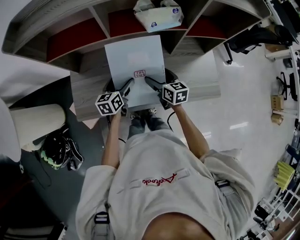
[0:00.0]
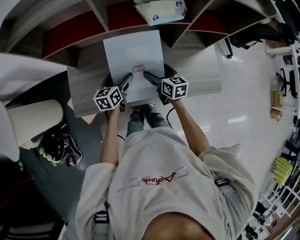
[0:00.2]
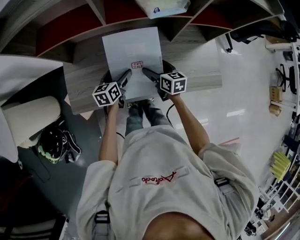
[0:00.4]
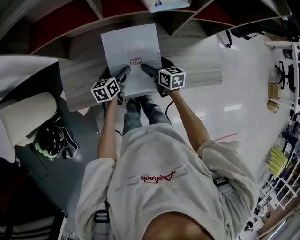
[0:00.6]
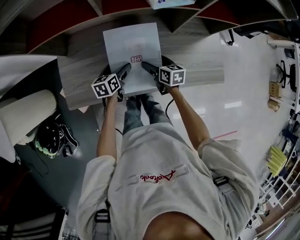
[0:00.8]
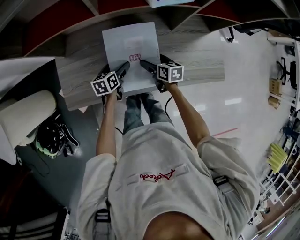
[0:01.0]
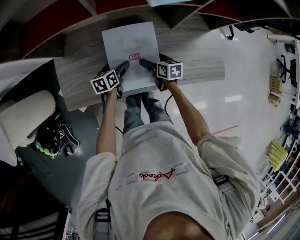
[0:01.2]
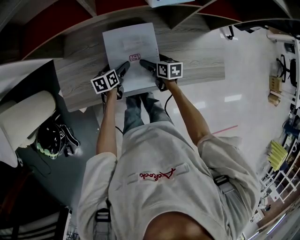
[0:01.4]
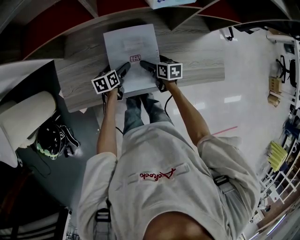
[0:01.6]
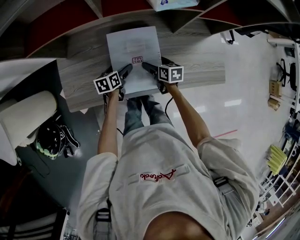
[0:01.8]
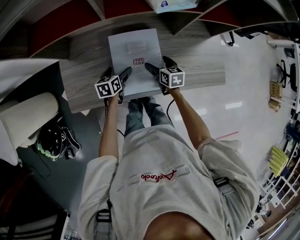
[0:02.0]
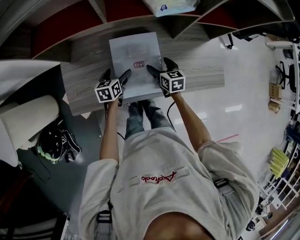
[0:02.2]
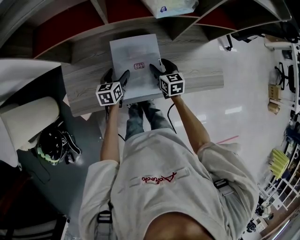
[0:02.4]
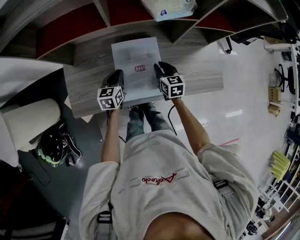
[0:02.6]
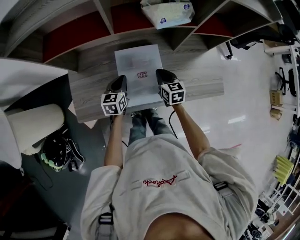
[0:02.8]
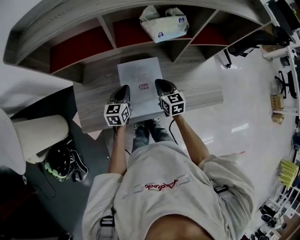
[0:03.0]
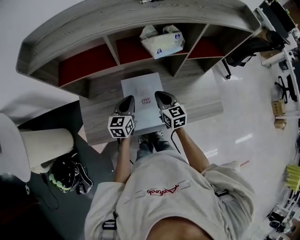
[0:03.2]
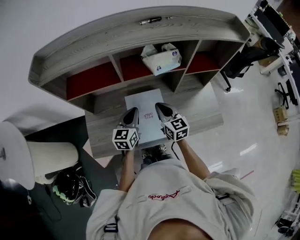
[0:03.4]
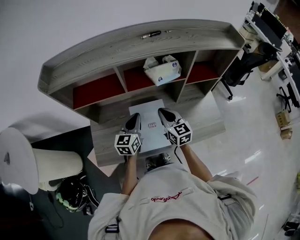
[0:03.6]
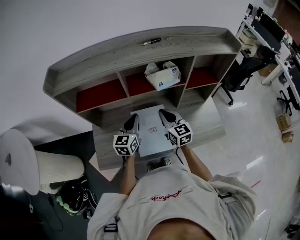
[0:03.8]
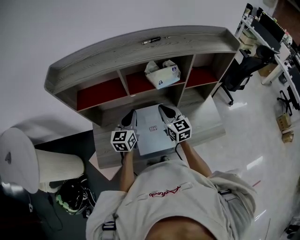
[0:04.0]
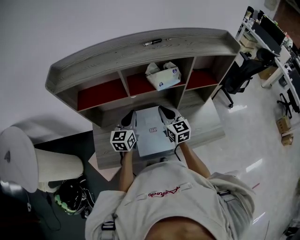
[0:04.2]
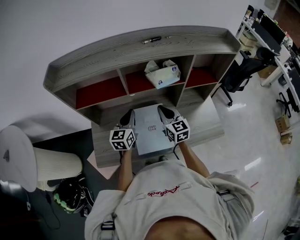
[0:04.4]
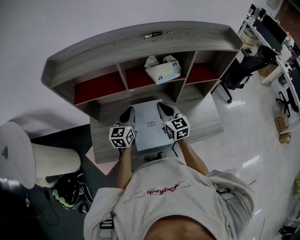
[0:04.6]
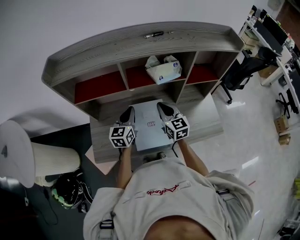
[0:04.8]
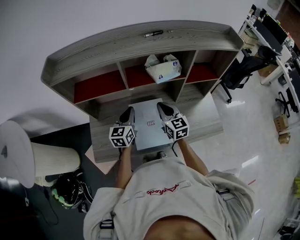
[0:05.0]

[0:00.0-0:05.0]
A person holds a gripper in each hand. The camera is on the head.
0:00.0 to 0:01.6: The grippers both shift downward by some 15 cm. The right gripper swivels about 20 degrees. Meanwhile the left gripper rotates about 20 degrees.
0:01.6 to 0:03.4: Both grippers travel together upward, approximately 25 cm. The left gripper turns by roughly 40 degrees, and closes; the right gripper turns by approximately 40 degrees, and closes its fingers.
0:03.4 to 0:05.0: The left gripper shifts by about 5 cm.

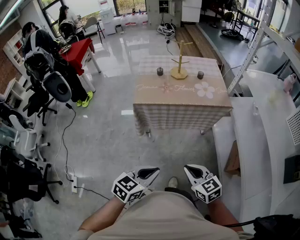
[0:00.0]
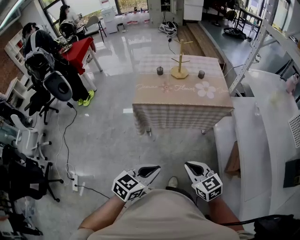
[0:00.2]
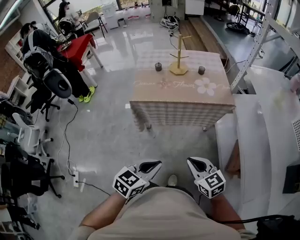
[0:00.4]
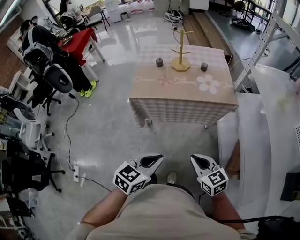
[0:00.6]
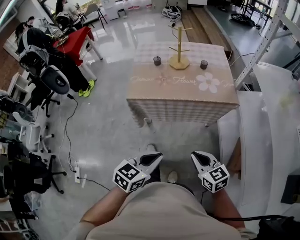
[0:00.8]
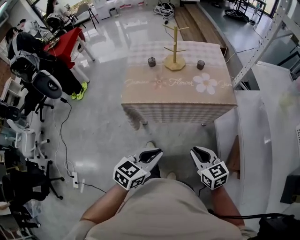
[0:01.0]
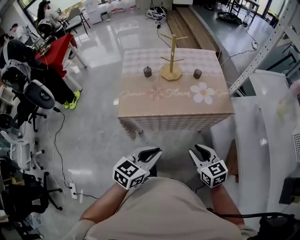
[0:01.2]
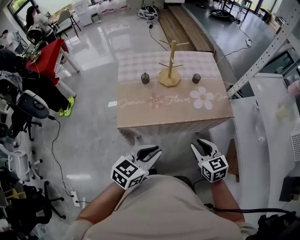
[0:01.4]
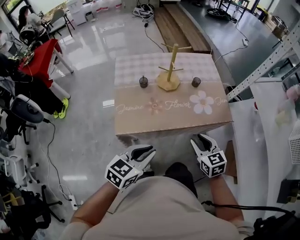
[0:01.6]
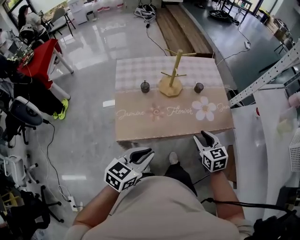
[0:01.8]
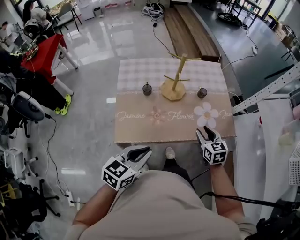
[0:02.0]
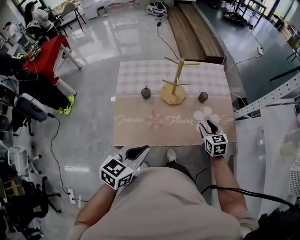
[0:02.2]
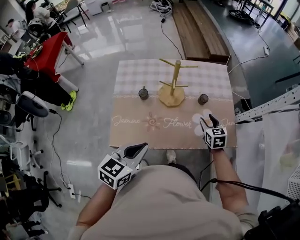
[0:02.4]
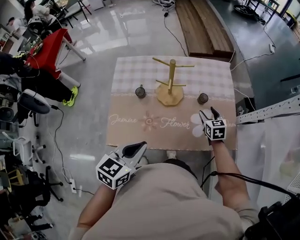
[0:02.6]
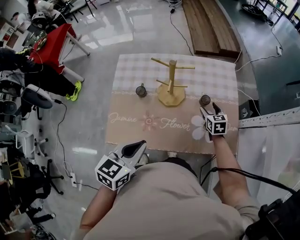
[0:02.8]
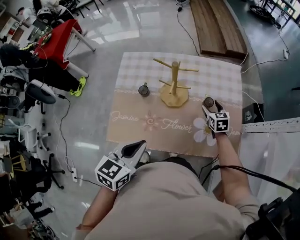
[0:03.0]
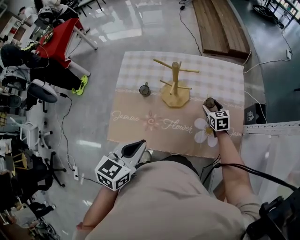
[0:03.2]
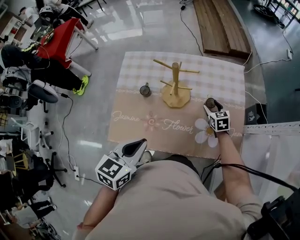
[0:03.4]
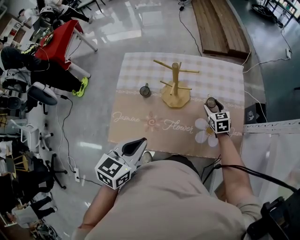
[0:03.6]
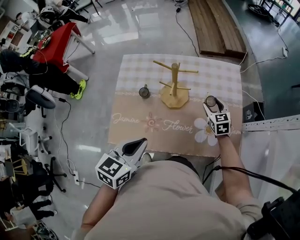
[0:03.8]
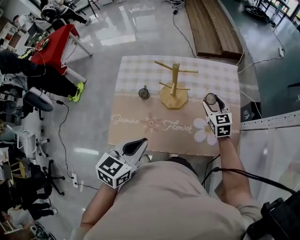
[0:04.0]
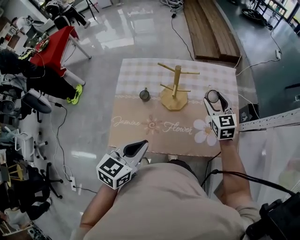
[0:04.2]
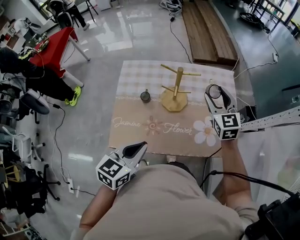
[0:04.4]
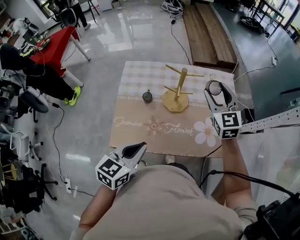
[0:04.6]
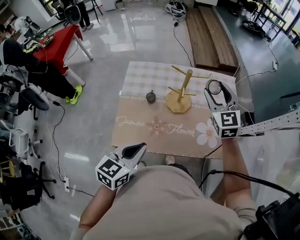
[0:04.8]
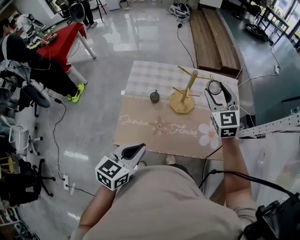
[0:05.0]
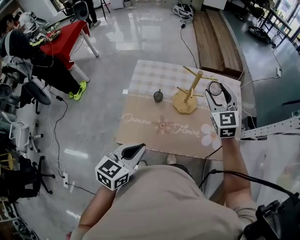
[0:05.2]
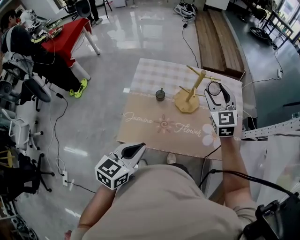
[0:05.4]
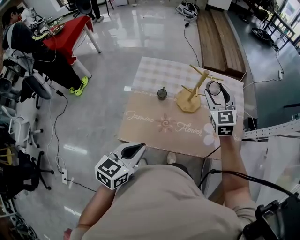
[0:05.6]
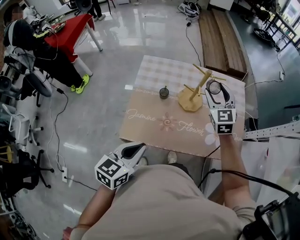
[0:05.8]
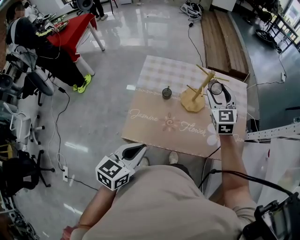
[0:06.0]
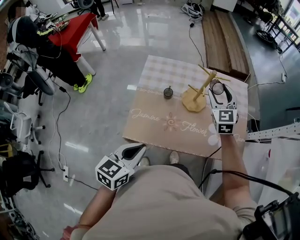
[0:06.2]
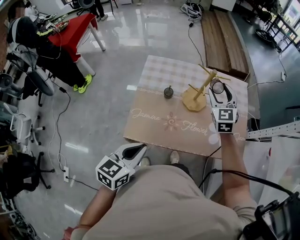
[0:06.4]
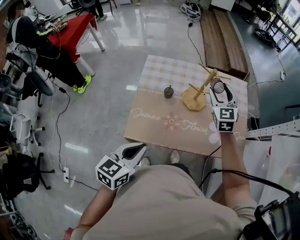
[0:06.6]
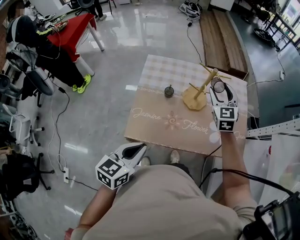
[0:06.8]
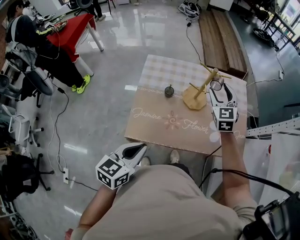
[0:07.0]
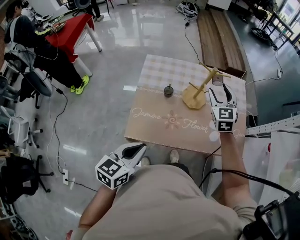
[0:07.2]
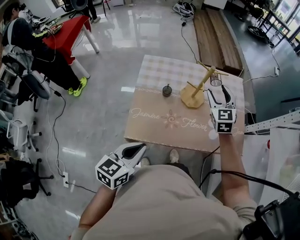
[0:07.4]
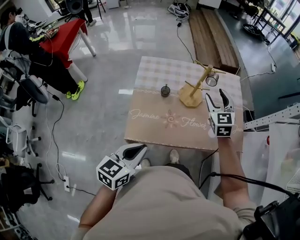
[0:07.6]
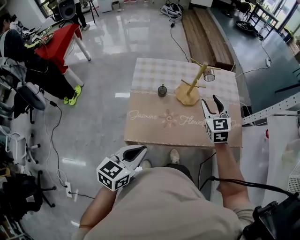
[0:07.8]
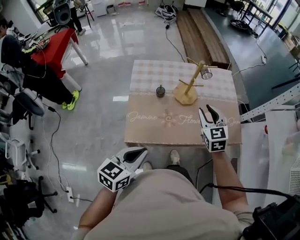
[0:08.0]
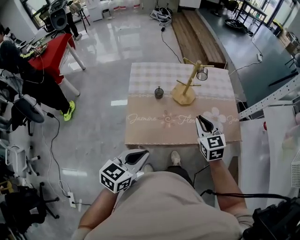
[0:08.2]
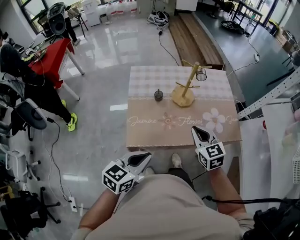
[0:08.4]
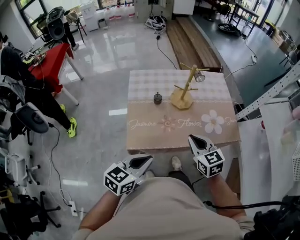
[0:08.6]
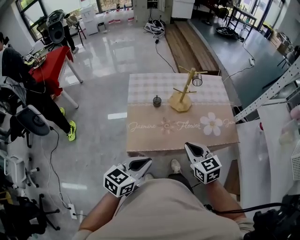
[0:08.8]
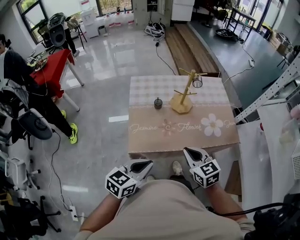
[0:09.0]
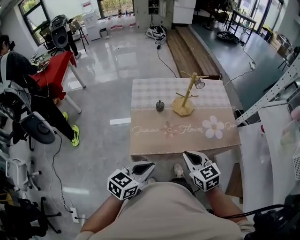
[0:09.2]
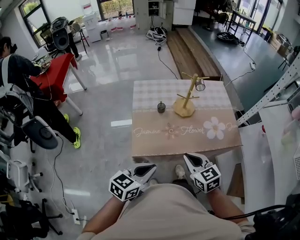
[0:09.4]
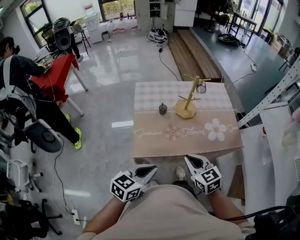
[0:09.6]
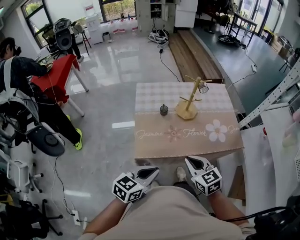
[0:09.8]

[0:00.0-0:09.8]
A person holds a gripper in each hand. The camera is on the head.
0:00.0 to 0:01.4: The two grippers go about 30 cm forward. The right gripper opens up.
0:01.4 to 0:02.8: The left gripper goes some 25 cm forward, and rotates about 20 degrees. The right gripper is displaced forward by about 40 cm, and opens up.
0:02.8 to 0:04.2: The right gripper shifts roughly 15 cm upward, and rotates some 20 degrees.
0:04.2 to 0:05.6: The left gripper heads to the left and backward, covering approximately 10 cm; the right gripper is displaced to the left and upward by approximately 15 cm.
0:05.6 to 0:07.0: There are only small adjustments of the grippers.
0:07.0 to 0:08.4: The right gripper travels backward by roughly 25 cm, turns by roughly 20 degrees, and closes its fingers.
0:08.4 to 0:09.8: The right gripper is displaced backward by approximately 10 cm.

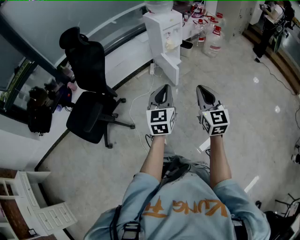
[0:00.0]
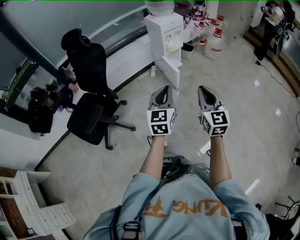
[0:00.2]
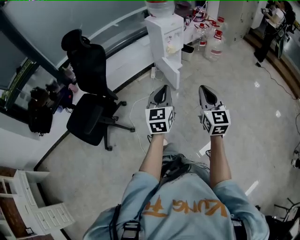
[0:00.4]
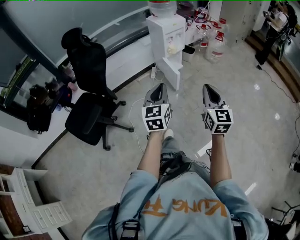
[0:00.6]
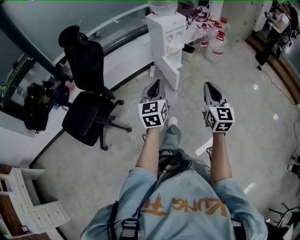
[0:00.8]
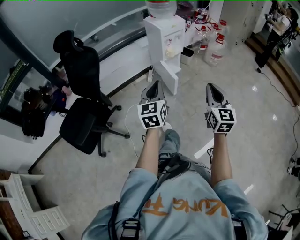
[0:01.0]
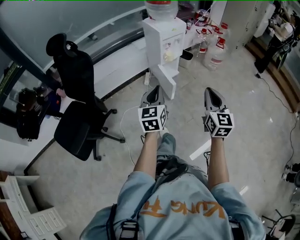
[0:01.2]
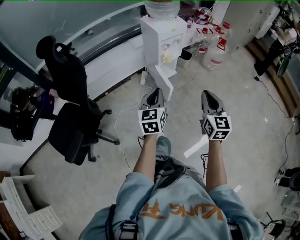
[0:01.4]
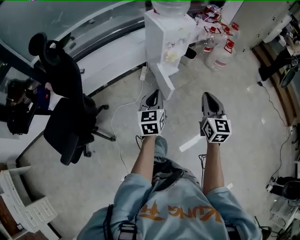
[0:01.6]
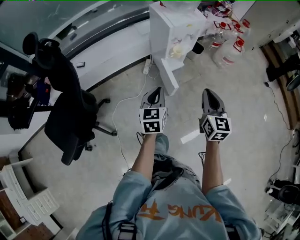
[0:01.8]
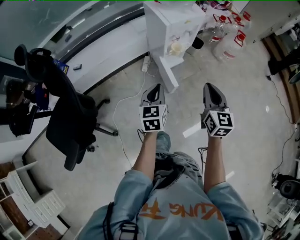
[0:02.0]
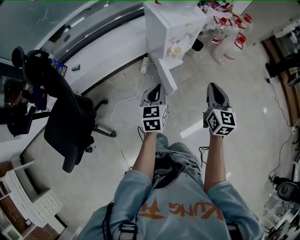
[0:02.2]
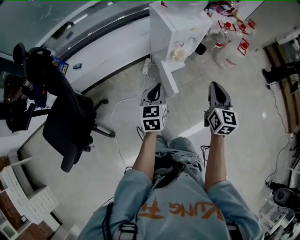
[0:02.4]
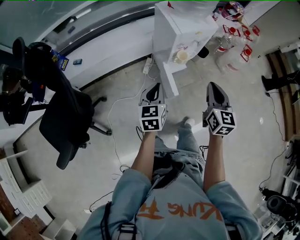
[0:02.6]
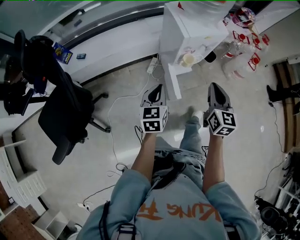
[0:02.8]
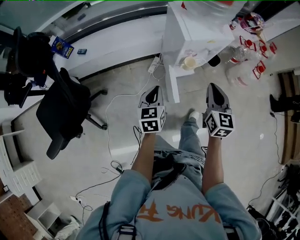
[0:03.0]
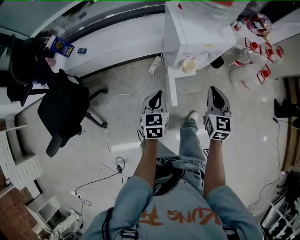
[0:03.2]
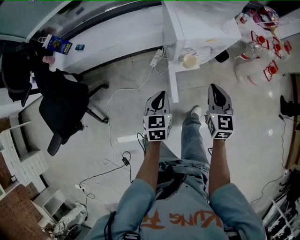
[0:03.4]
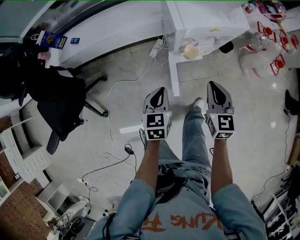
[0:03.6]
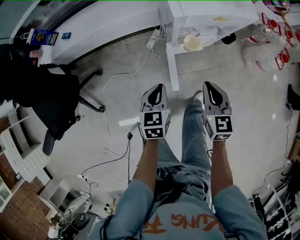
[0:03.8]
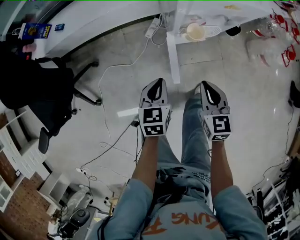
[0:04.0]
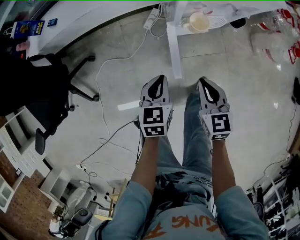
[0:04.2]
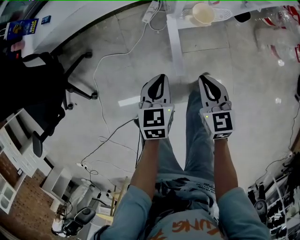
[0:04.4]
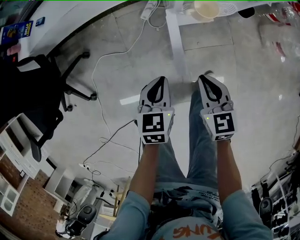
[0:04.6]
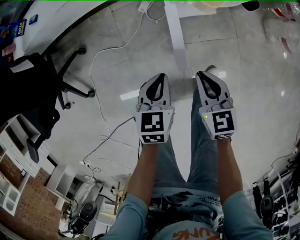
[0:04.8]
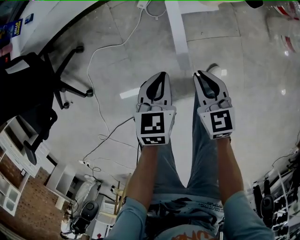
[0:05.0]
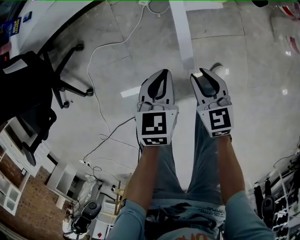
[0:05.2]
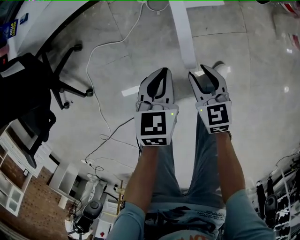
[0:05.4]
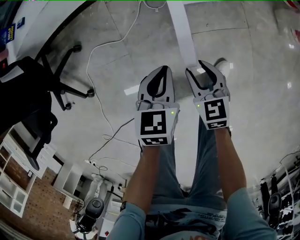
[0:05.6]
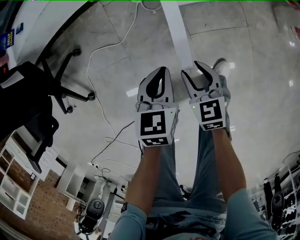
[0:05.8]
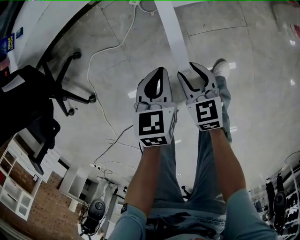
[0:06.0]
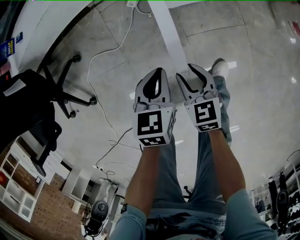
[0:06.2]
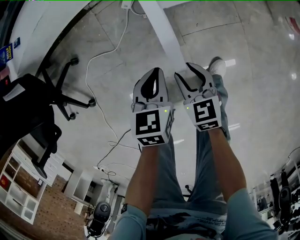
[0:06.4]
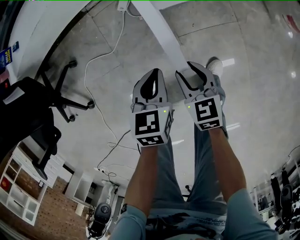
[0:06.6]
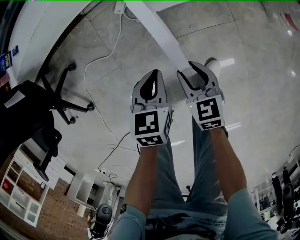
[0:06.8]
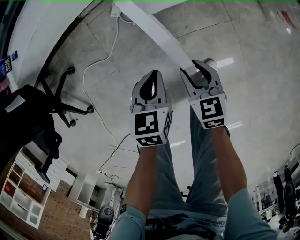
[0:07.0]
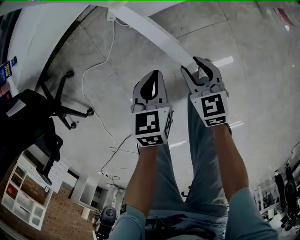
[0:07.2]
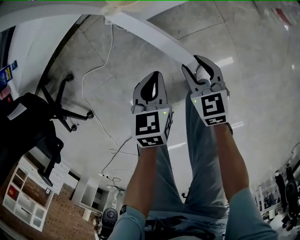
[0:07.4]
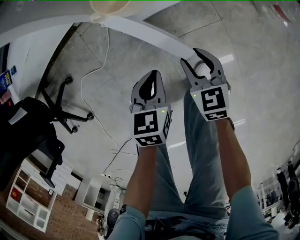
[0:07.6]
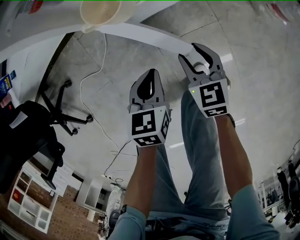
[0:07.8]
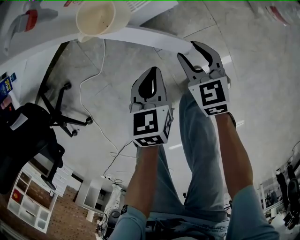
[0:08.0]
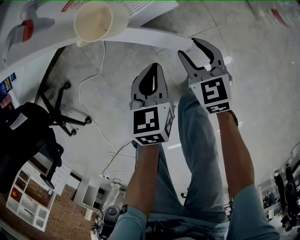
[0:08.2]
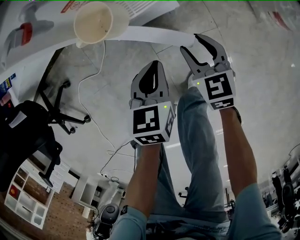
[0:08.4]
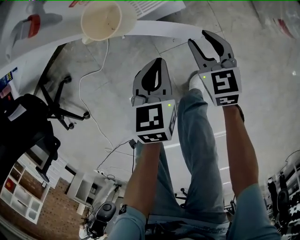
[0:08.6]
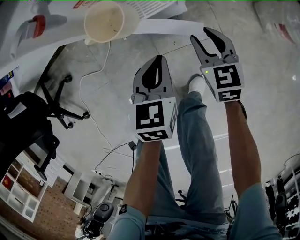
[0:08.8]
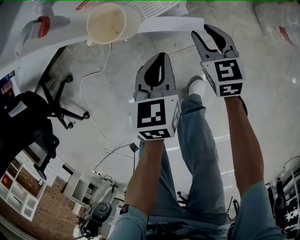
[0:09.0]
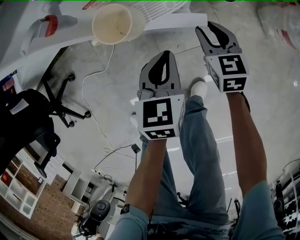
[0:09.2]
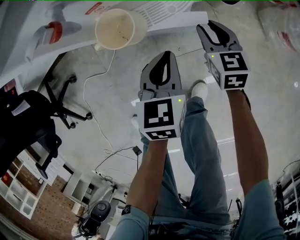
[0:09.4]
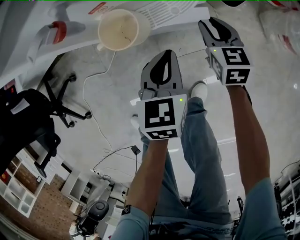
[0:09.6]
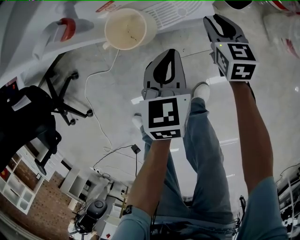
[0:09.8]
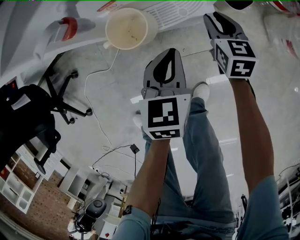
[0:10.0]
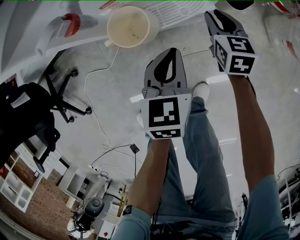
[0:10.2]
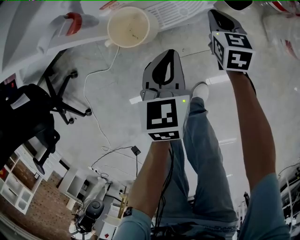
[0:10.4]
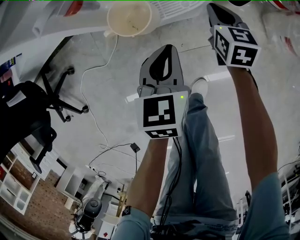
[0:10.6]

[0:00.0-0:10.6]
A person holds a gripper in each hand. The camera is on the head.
0:00.0 to 0:01.6: The two grippers go roughly 35 cm forward.
0:01.6 to 0:03.0: The left gripper heads forward and downward, covering some 25 cm; the right gripper is displaced forward by some 30 cm.
0:03.0 to 0:04.6: Both grippers travel together downward, roughly 30 cm. The right gripper swivels approximately 30 degrees.
0:04.6 to 0:06.0: The left gripper shifts roughly 10 cm downward. The right gripper shifts approximately 15 cm downward, and opens its fingers.
0:06.0 to 0:07.6: Both grippers travel together to the right, about 15 cm.
0:07.6 to 0:09.0: Both grippers move forward and to the right, roughly 15 cm.
0:09.0 to 0:10.6: The right gripper is displaced forward by about 10 cm, and closes up.
